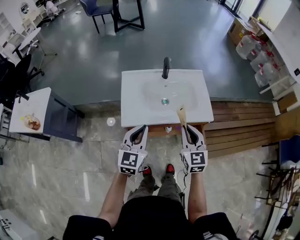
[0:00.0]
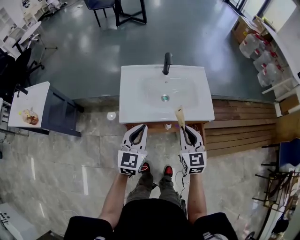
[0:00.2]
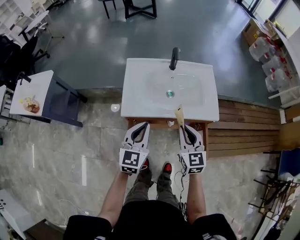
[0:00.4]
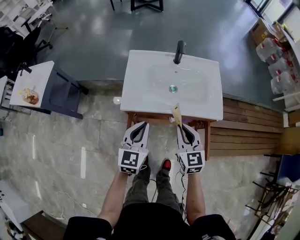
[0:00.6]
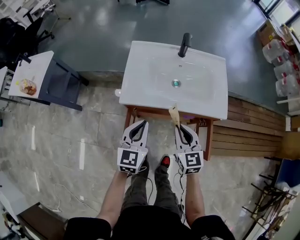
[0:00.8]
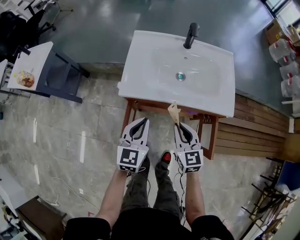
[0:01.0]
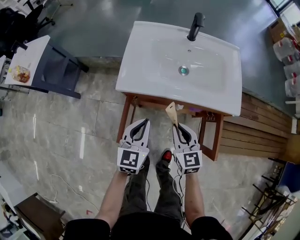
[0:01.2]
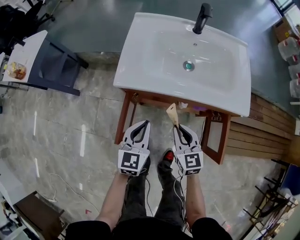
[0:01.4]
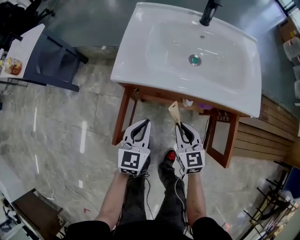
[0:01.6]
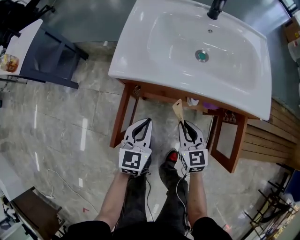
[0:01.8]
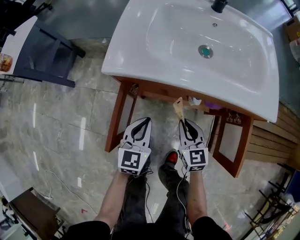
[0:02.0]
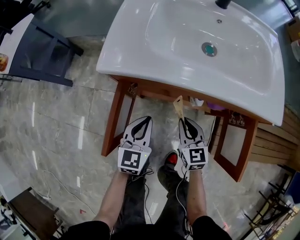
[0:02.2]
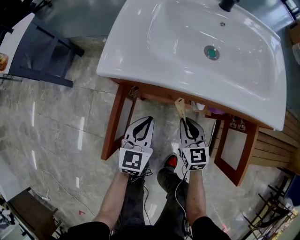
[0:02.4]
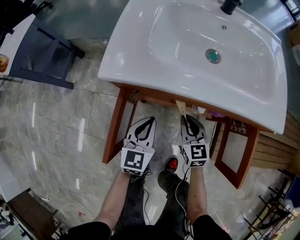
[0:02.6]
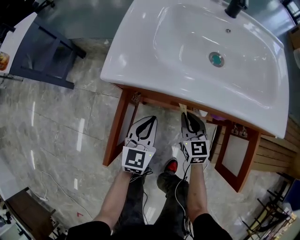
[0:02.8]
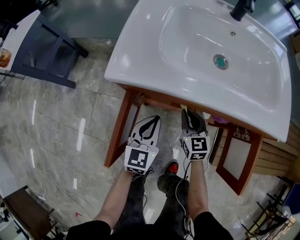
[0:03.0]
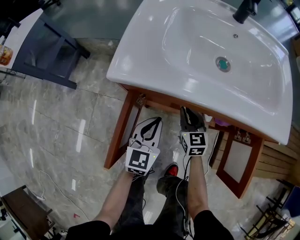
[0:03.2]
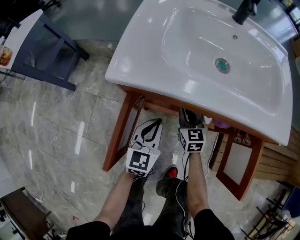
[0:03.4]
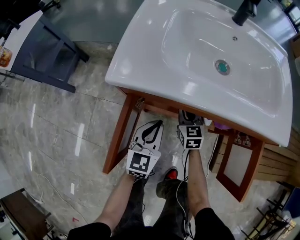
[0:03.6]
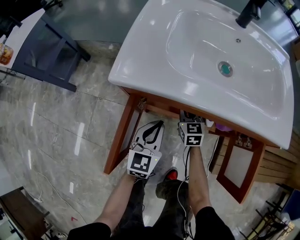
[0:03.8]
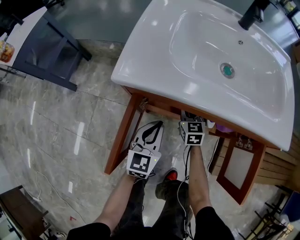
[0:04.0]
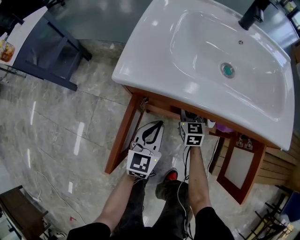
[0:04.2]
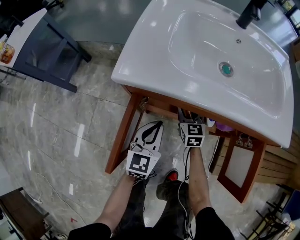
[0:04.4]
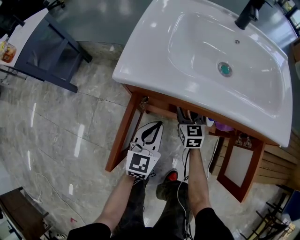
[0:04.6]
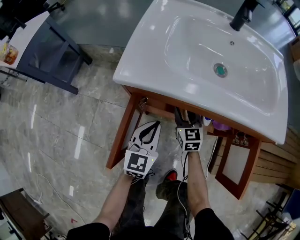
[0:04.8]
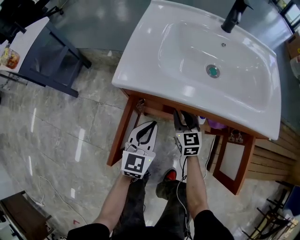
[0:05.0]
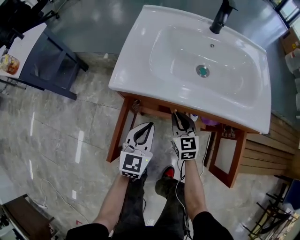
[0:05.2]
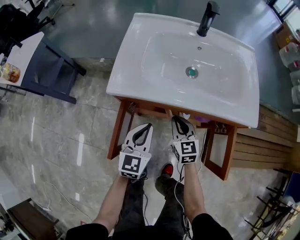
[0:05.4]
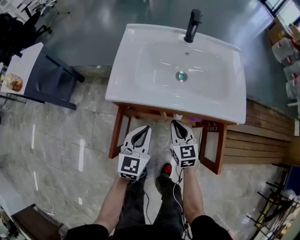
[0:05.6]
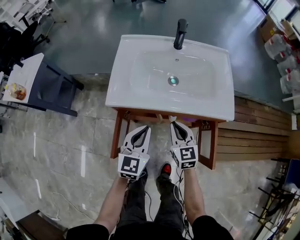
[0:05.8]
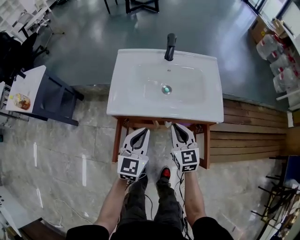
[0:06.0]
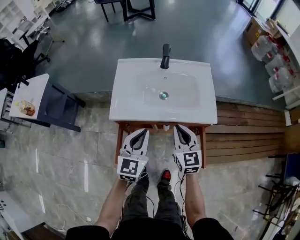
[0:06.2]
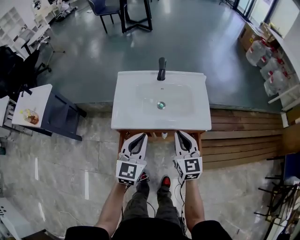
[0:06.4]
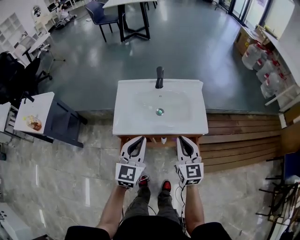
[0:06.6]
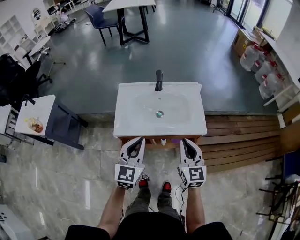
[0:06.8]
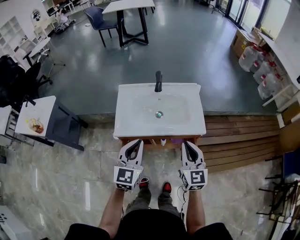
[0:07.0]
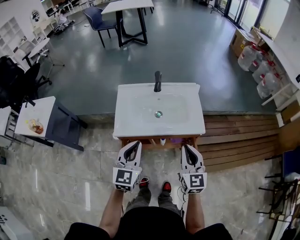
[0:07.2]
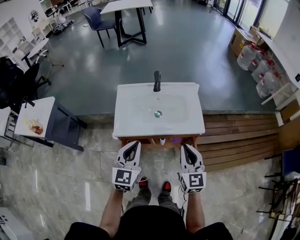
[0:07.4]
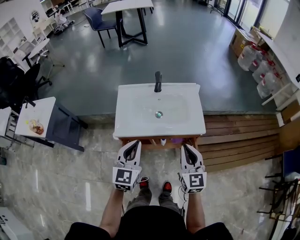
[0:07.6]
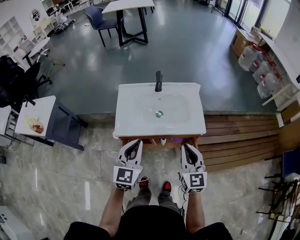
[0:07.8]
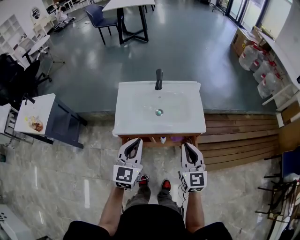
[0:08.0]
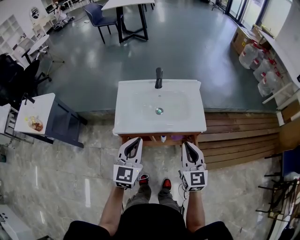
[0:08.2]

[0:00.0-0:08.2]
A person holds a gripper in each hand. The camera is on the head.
0:00.0 to 0:01.6: Both grippers move downward, about 30 cm. The right gripper turns by approximately 30 degrees.
0:01.6 to 0:03.2: Both grippers travel together downward and forward, some 20 cm.
0:05.0 to 0:06.6: Both grippers travel together upward, about 40 cm. The right gripper rotates approximately 20 degrees.
0:06.6 to 0:08.2: The right gripper moves some 5 cm.

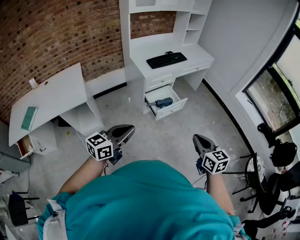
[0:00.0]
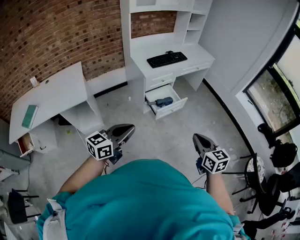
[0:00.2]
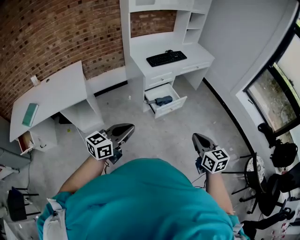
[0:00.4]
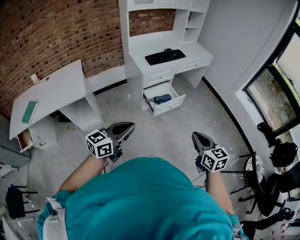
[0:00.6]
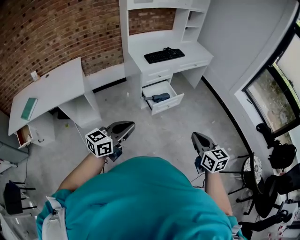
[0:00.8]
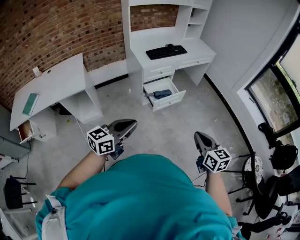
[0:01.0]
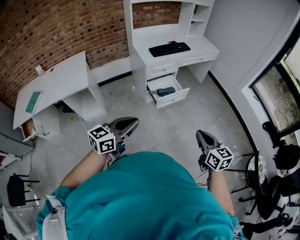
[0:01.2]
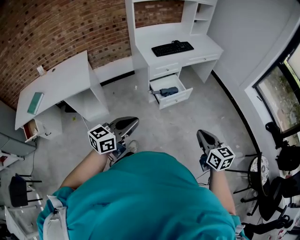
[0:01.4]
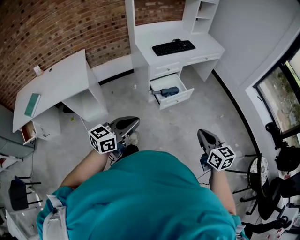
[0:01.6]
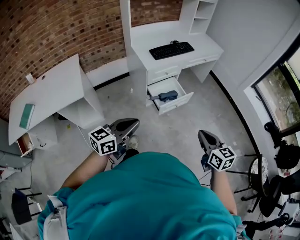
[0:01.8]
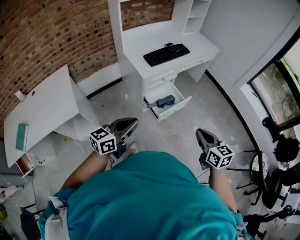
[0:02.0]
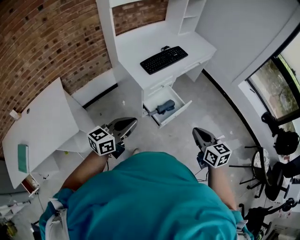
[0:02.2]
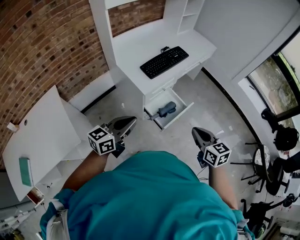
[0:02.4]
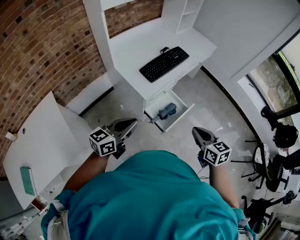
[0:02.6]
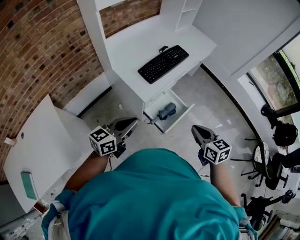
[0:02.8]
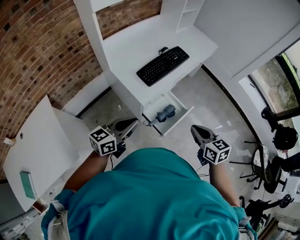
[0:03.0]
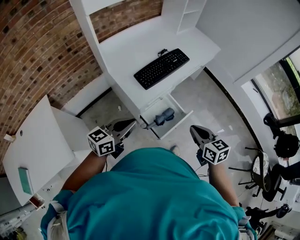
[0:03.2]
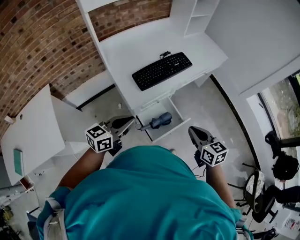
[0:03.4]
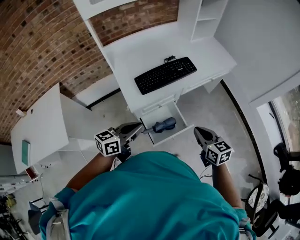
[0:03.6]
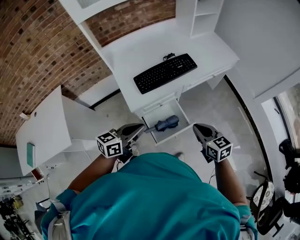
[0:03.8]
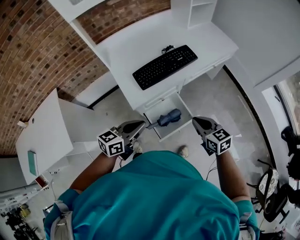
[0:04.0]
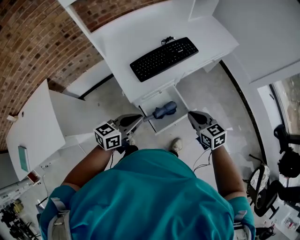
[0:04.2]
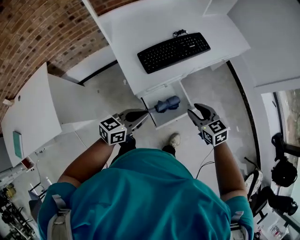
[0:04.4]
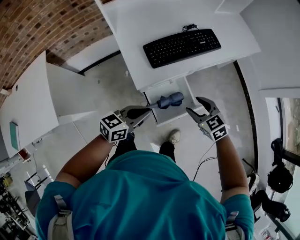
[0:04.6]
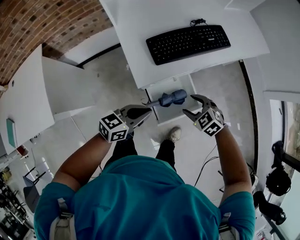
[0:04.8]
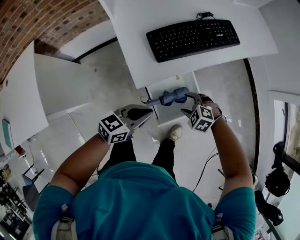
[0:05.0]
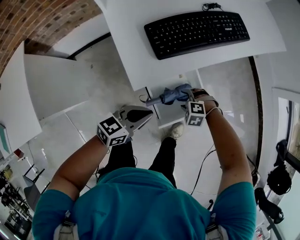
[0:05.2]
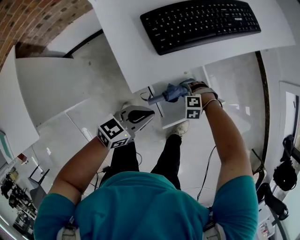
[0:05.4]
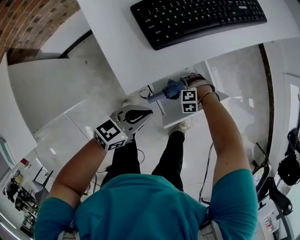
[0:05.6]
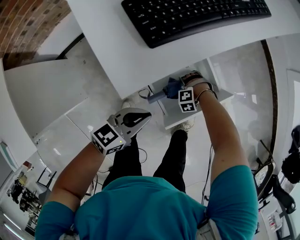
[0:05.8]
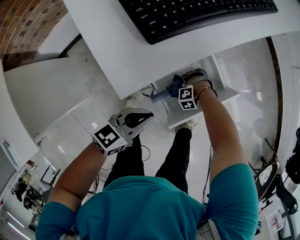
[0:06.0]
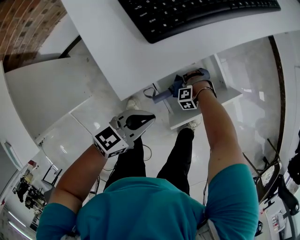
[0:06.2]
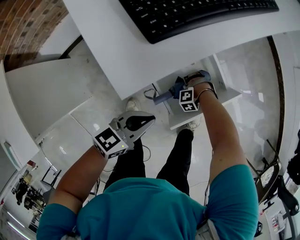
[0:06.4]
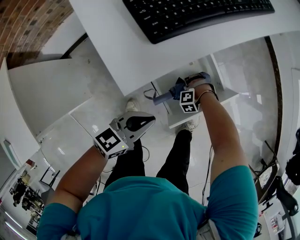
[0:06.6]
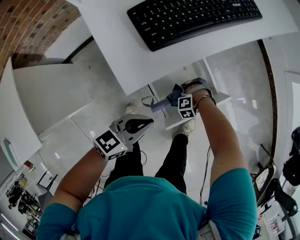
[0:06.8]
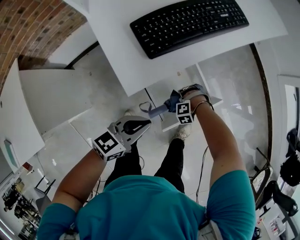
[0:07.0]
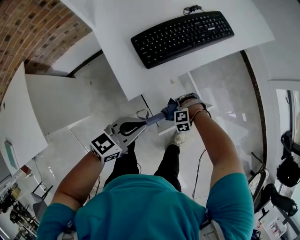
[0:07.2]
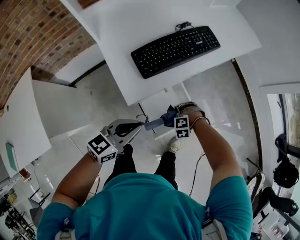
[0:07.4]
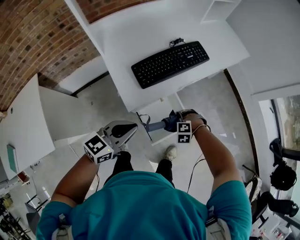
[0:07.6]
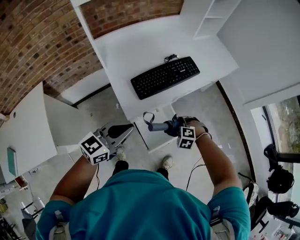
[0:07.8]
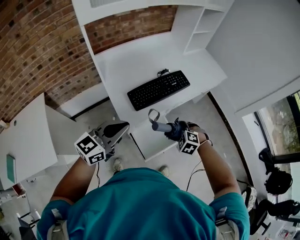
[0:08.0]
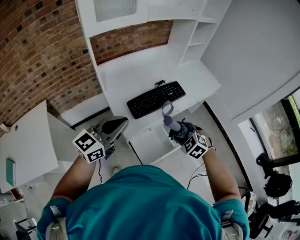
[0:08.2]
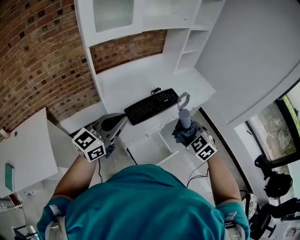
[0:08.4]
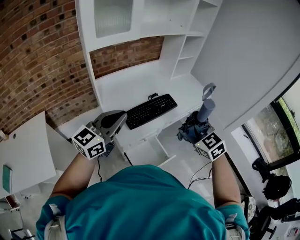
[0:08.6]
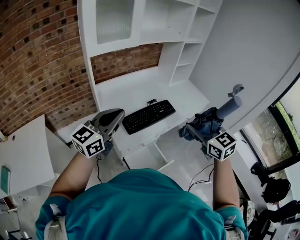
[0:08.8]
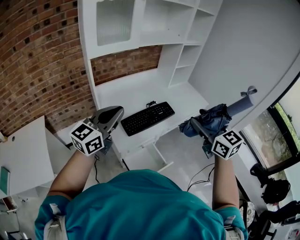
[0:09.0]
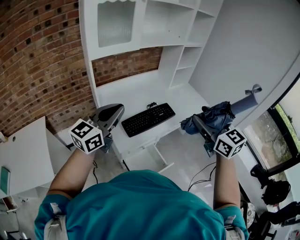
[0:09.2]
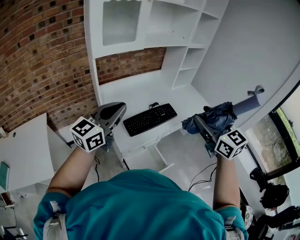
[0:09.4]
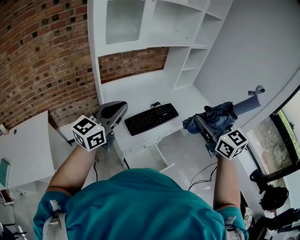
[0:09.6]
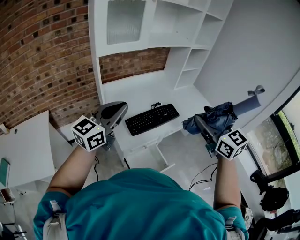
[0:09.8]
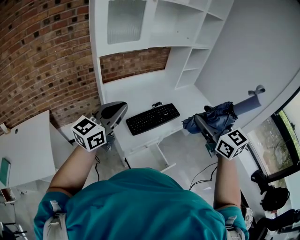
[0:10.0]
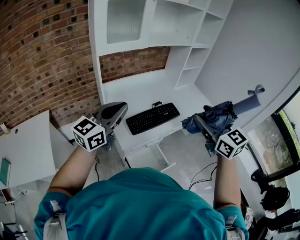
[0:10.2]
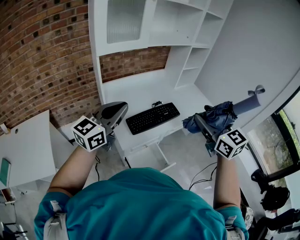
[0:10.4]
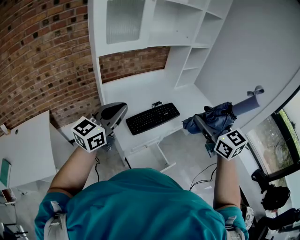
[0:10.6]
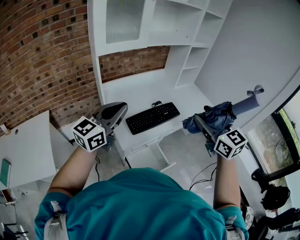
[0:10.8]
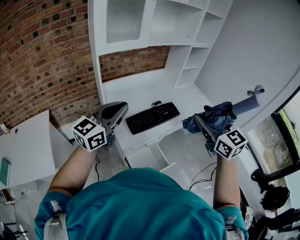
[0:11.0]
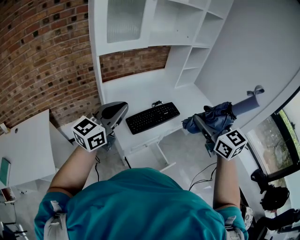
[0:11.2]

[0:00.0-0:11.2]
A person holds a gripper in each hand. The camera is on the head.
0:00.0 to 0:01.6: The left gripper heads to the right, covering approximately 5 cm.
0:01.6 to 0:03.2: The pair of grippers is taken forward and to the left, some 40 cm.
0:03.2 to 0:04.8: The right gripper moves downward and forward, about 25 cm, changes its angle by approximately 60 degrees, and opens; the left gripper is displaced downward and to the right by roughly 20 cm.
0:04.8 to 0:06.4: The right gripper goes some 40 cm downward, and turns by approximately 60 degrees; the left gripper moves downward, approximately 20 cm.
0:06.4 to 0:08.0: The two grippers go approximately 50 cm upward. The left gripper swivels about 30 degrees. Meanwhile the right gripper turns by about 50 degrees.
0:08.0 to 0:09.6: The left gripper is displaced upward by about 20 cm, while the right gripper is displaced upward by roughly 40 cm, and tilts its fingers about 60 degrees upward.
0:09.6 to 0:11.2: Both grippers stay put.

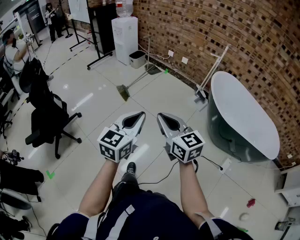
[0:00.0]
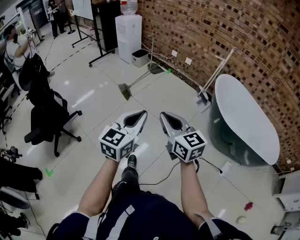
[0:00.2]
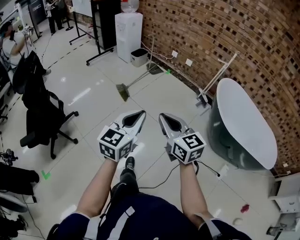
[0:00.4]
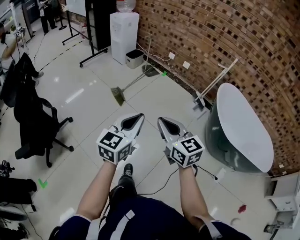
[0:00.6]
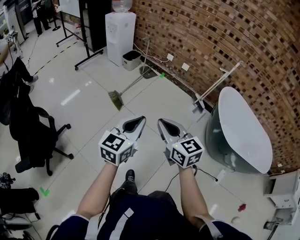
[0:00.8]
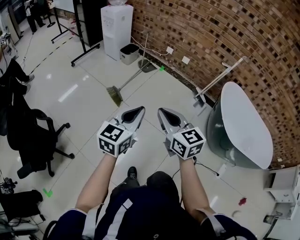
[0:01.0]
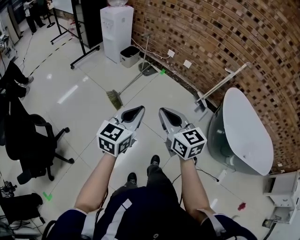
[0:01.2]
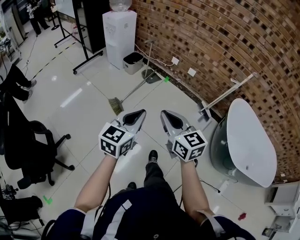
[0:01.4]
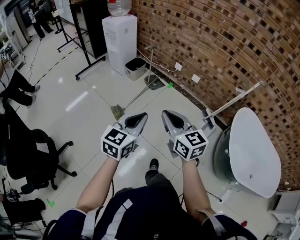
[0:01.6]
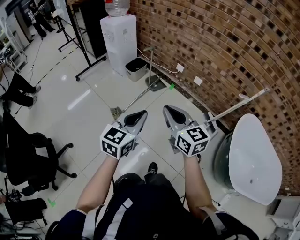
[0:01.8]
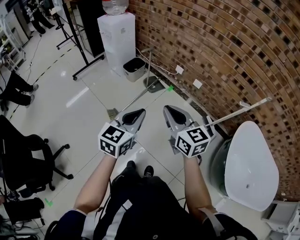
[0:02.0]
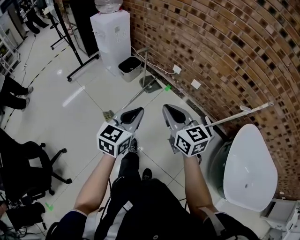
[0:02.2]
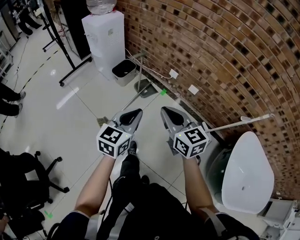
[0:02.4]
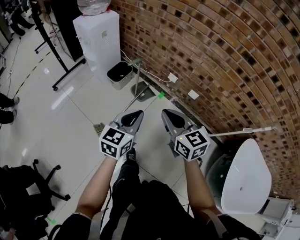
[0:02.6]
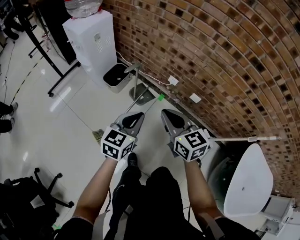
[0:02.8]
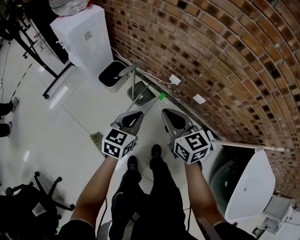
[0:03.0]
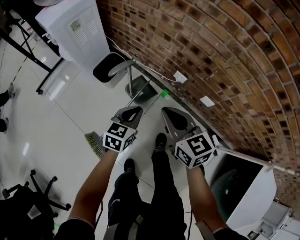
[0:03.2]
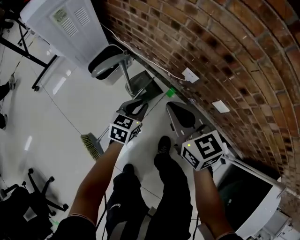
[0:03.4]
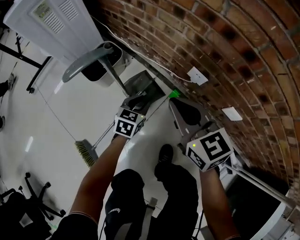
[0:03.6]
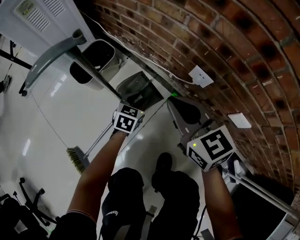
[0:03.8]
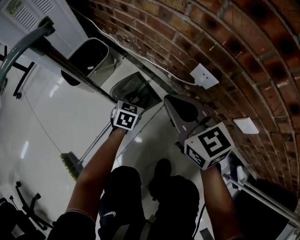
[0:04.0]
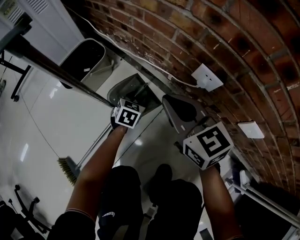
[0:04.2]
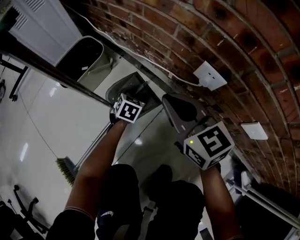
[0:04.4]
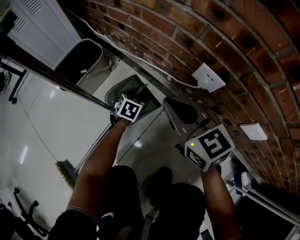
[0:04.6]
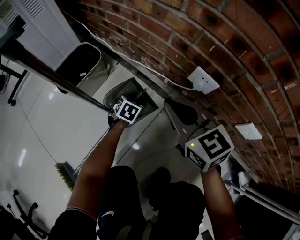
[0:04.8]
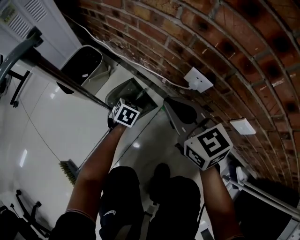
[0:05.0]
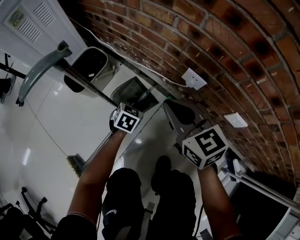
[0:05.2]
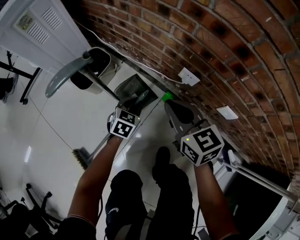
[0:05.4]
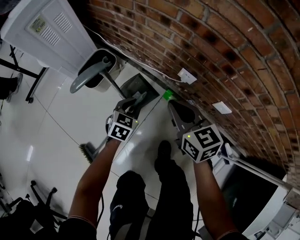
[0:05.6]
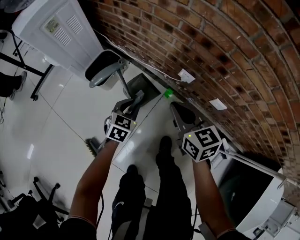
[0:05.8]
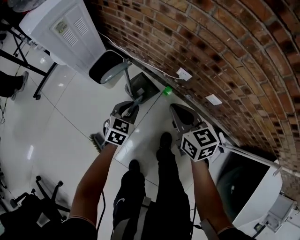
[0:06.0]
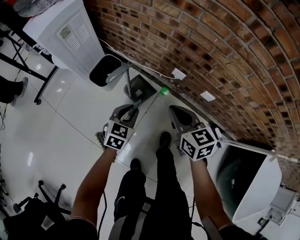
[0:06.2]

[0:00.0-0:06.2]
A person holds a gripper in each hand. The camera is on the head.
0:00.0 to 0:01.6: The pair of grippers is taken forward, approximately 50 cm.
0:01.6 to 0:03.2: Both grippers are carried forward, some 60 cm. The two grippers go roughly 30 cm downward.
0:03.2 to 0:04.6: The two grippers go some 50 cm downward and forward. The left gripper changes its angle by about 30 degrees, and opens.
0:04.6 to 0:06.2: The left gripper is displaced upward and backward by roughly 50 cm, turns by some 20 degrees, and closes up. Meanwhile the right gripper shifts roughly 35 cm upward and backward, and turns by about 20 degrees.
